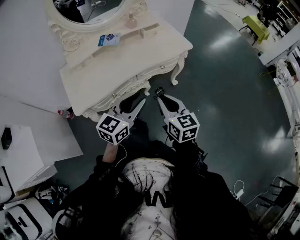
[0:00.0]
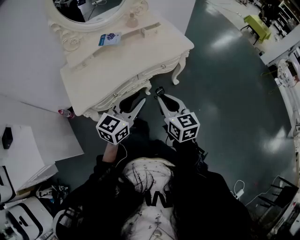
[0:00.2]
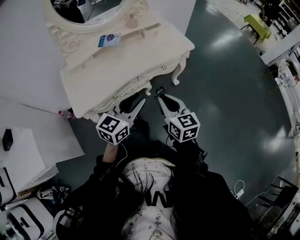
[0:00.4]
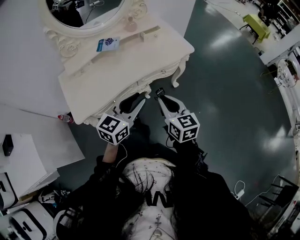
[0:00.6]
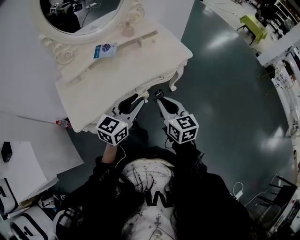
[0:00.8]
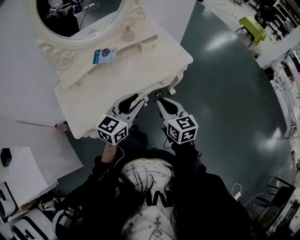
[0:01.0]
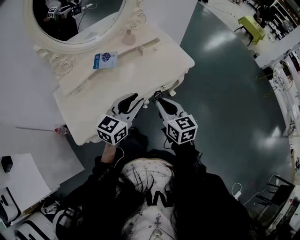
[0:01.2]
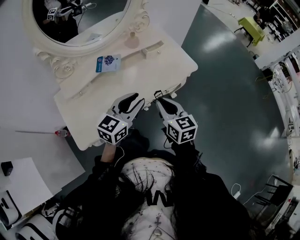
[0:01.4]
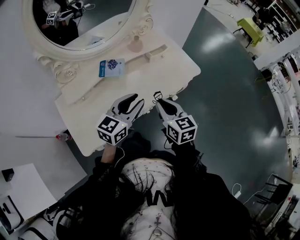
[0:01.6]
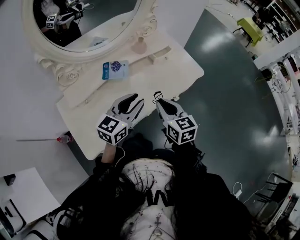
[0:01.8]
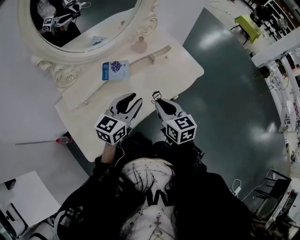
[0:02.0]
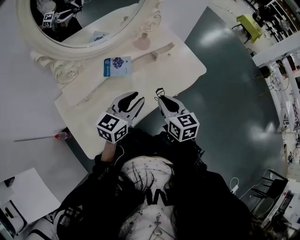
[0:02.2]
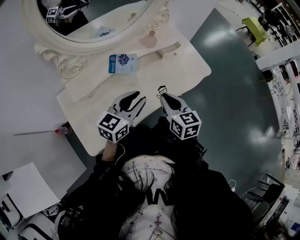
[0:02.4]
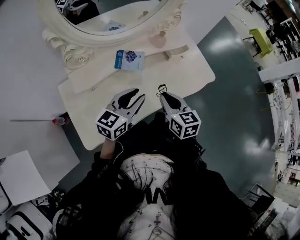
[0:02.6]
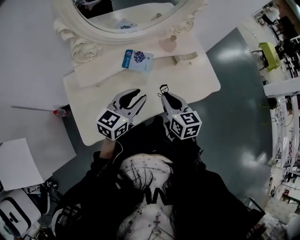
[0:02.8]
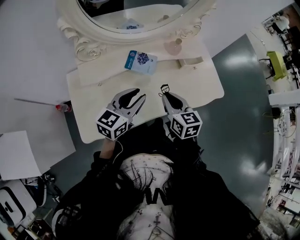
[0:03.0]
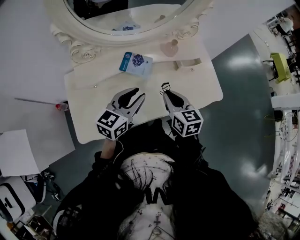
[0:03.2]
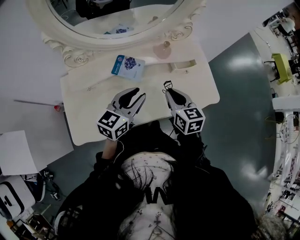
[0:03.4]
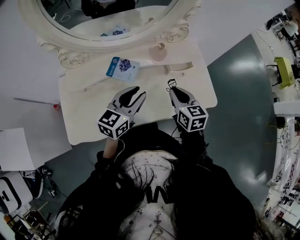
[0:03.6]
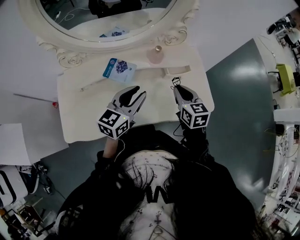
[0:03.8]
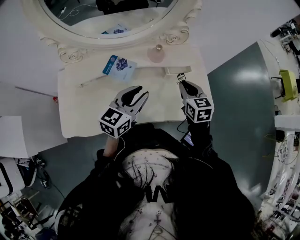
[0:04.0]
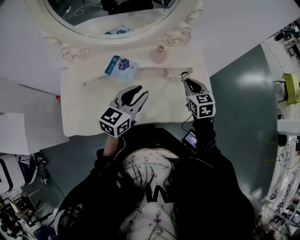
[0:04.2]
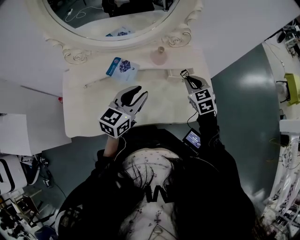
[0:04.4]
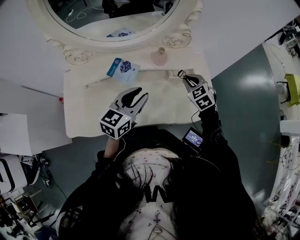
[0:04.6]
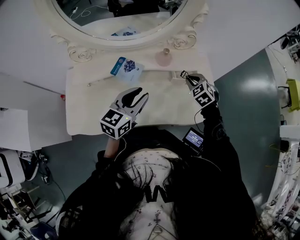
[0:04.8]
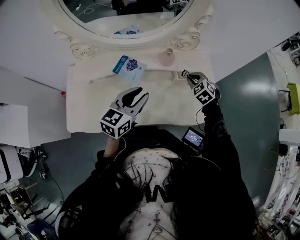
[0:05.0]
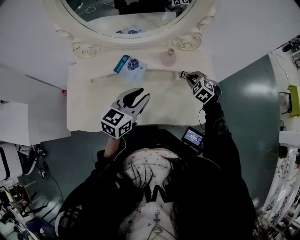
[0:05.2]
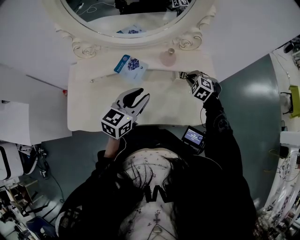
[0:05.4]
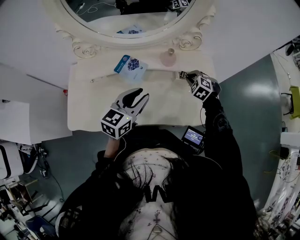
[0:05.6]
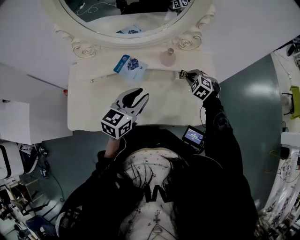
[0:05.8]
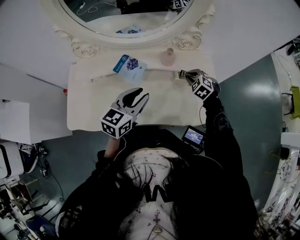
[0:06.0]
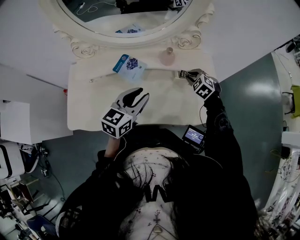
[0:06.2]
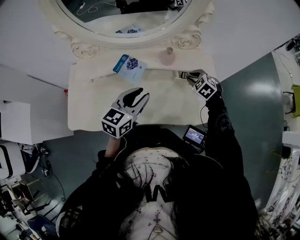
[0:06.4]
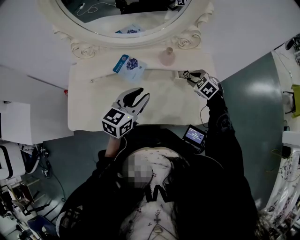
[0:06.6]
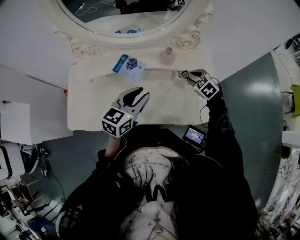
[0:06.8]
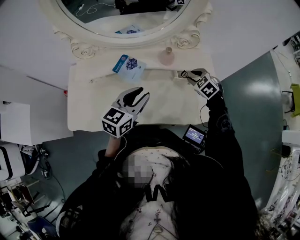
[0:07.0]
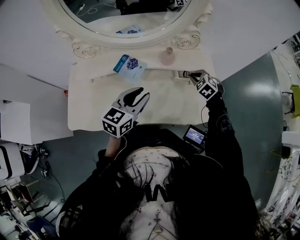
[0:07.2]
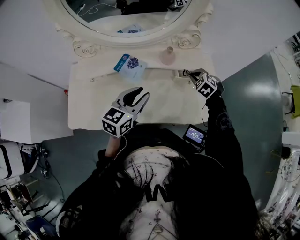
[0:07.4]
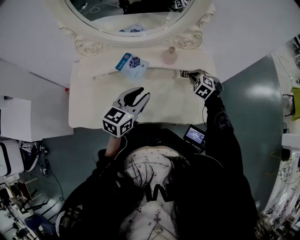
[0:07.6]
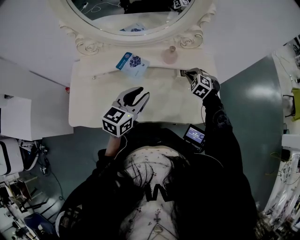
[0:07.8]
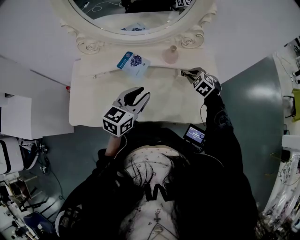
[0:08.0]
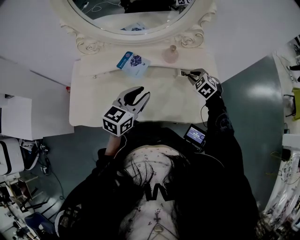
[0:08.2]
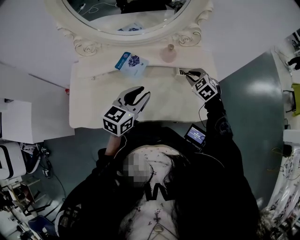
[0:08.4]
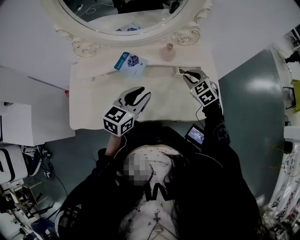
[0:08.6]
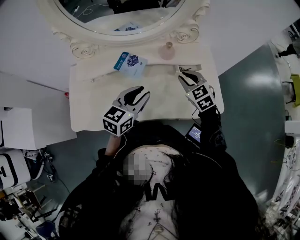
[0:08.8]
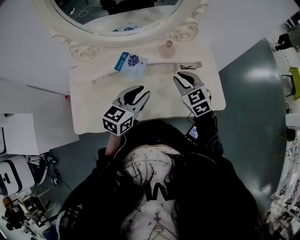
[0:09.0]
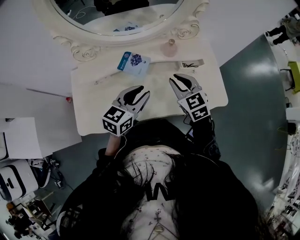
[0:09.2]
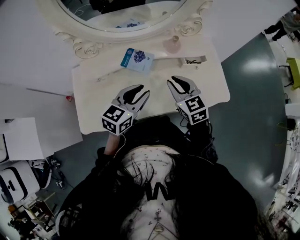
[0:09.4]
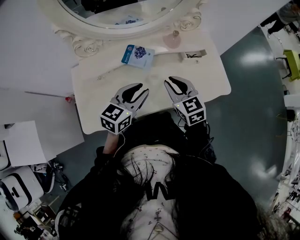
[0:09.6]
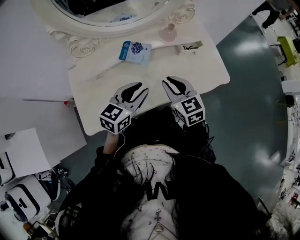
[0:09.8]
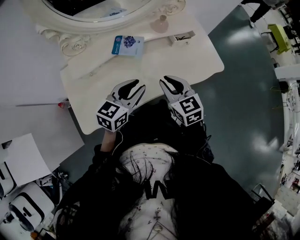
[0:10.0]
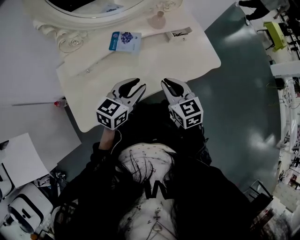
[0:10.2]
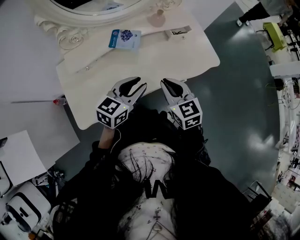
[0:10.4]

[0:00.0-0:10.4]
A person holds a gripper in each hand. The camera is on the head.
0:00.0 to 0:01.4: Both grippers move forward, about 20 cm.
0:01.4 to 0:03.0: Both grippers travel together to the left and forward, roughly 15 cm.
0:03.0 to 0:04.4: The right gripper is displaced to the right and forward by approximately 25 cm, and rotates about 30 degrees. Meanwhile the left gripper shifts some 15 cm to the right and forward.
0:04.4 to 0:06.0: The right gripper heads downward and forward, covering roughly 10 cm, and turns by some 40 degrees.
0:06.0 to 0:07.4: The grippers stay close to where they were, moving slightly.
0:07.4 to 0:09.0: The right gripper is displaced upward, to the left and backward by some 20 cm, and rotates about 30 degrees.
0:09.0 to 0:10.4: The left gripper is displaced backward by approximately 10 cm; the right gripper shifts about 20 cm backward, and swivels about 20 degrees.

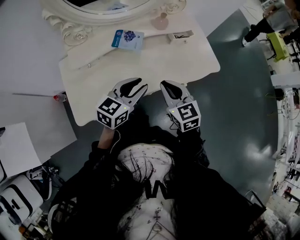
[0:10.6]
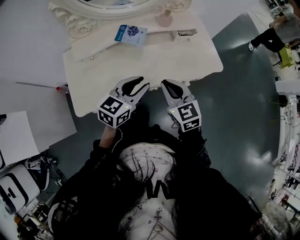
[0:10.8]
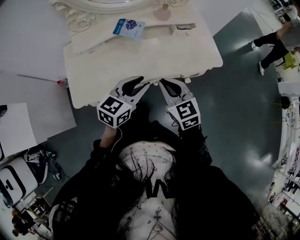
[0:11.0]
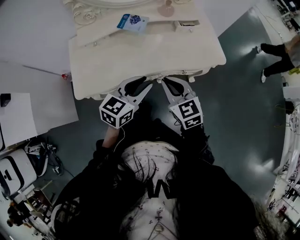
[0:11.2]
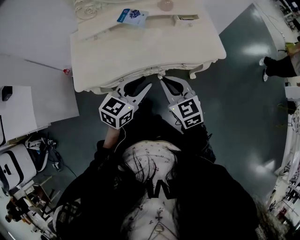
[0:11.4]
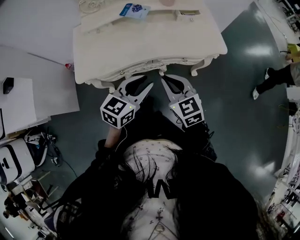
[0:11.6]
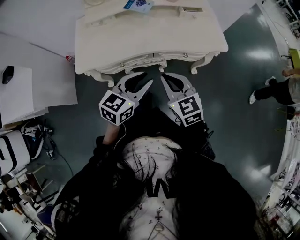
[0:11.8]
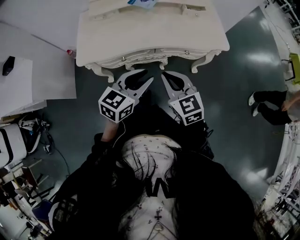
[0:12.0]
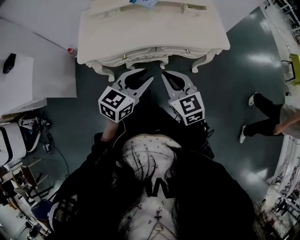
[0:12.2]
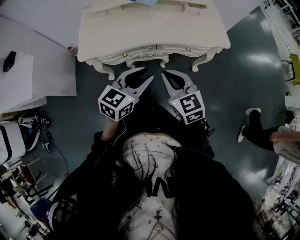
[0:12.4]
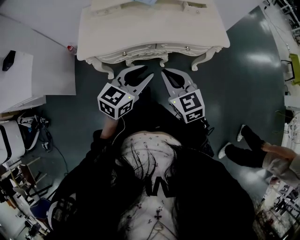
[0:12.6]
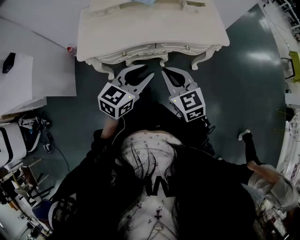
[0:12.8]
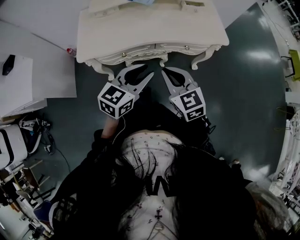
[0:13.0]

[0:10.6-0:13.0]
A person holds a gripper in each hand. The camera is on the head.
0:10.6 to 0:11.8: Both grippers travel together backward, some 20 cm.
0:11.8 to 0:13.0: The grippers move only a little.

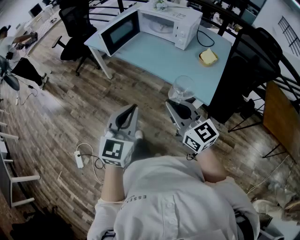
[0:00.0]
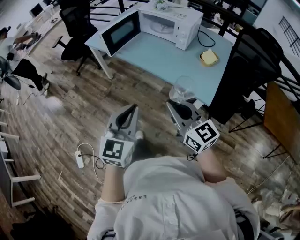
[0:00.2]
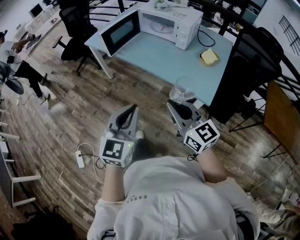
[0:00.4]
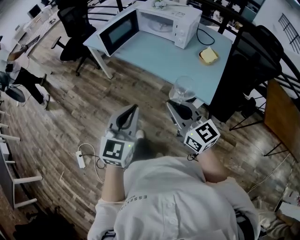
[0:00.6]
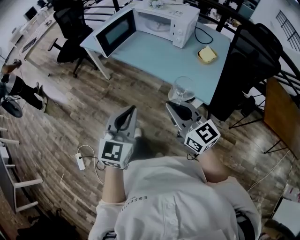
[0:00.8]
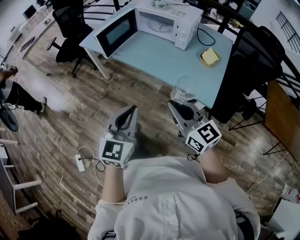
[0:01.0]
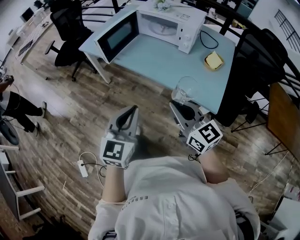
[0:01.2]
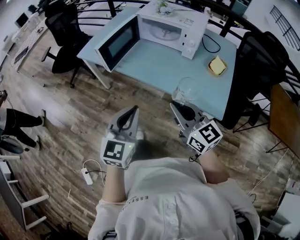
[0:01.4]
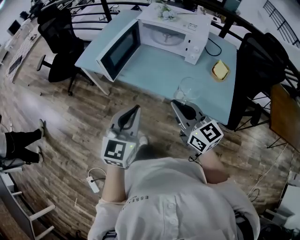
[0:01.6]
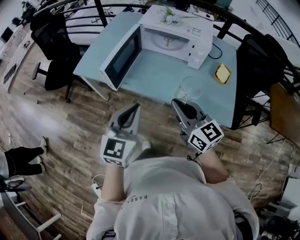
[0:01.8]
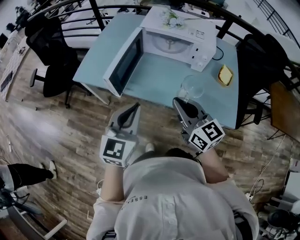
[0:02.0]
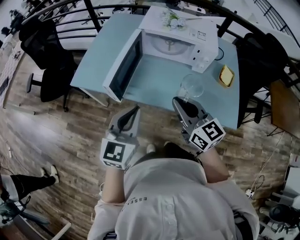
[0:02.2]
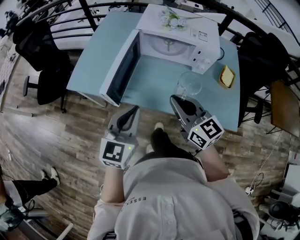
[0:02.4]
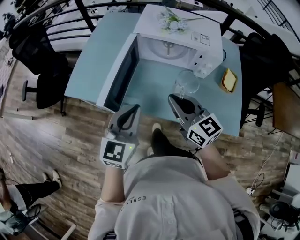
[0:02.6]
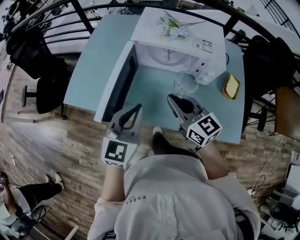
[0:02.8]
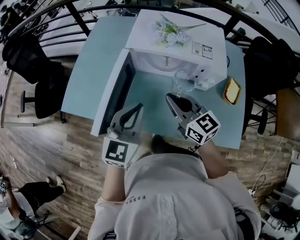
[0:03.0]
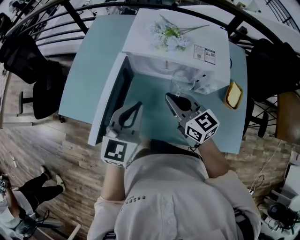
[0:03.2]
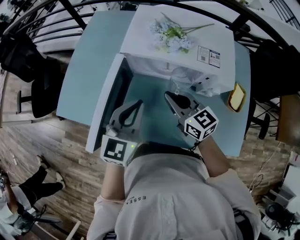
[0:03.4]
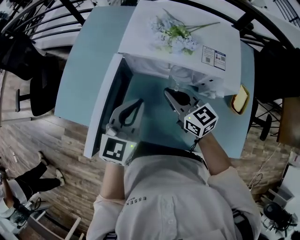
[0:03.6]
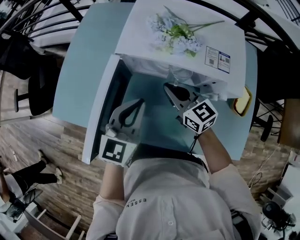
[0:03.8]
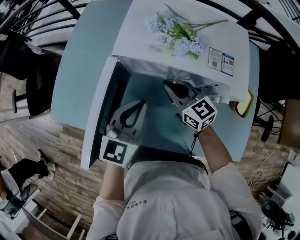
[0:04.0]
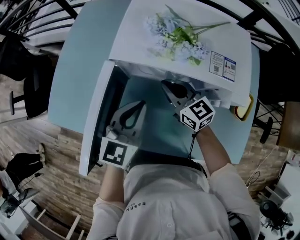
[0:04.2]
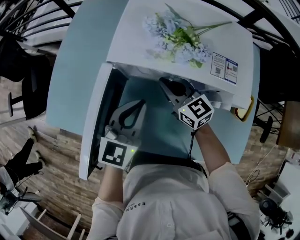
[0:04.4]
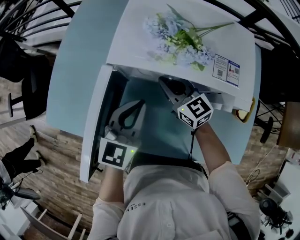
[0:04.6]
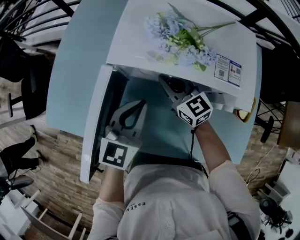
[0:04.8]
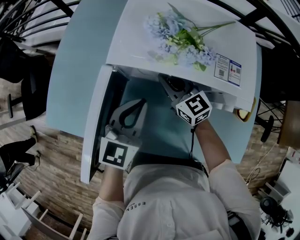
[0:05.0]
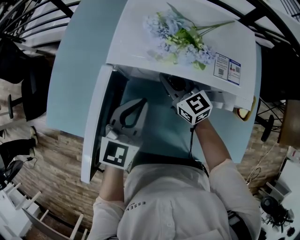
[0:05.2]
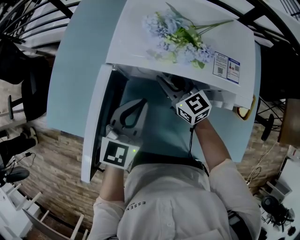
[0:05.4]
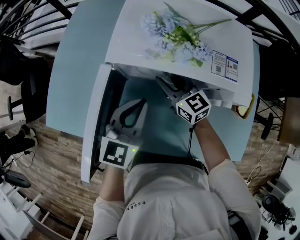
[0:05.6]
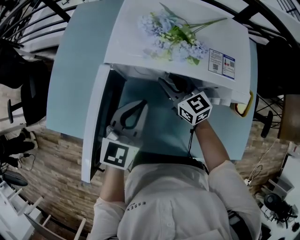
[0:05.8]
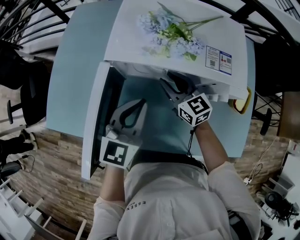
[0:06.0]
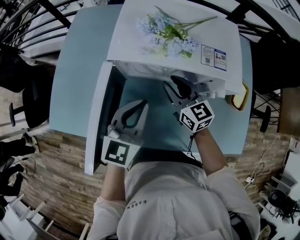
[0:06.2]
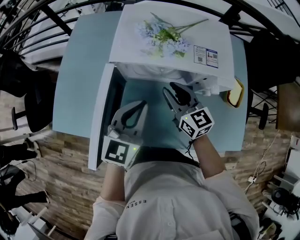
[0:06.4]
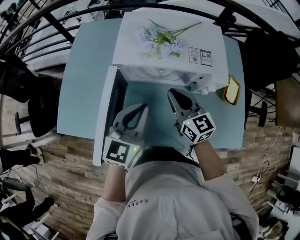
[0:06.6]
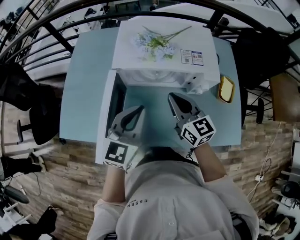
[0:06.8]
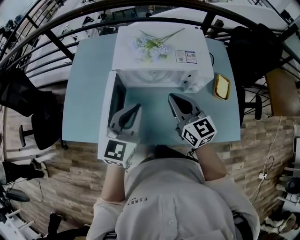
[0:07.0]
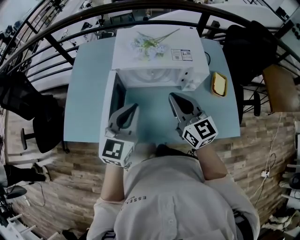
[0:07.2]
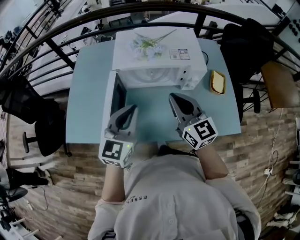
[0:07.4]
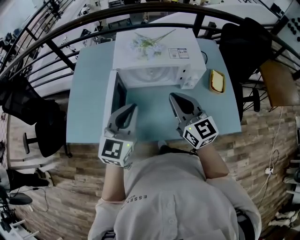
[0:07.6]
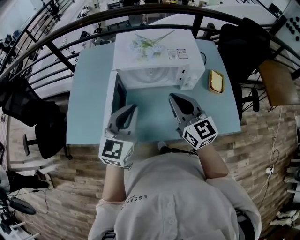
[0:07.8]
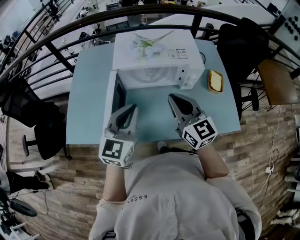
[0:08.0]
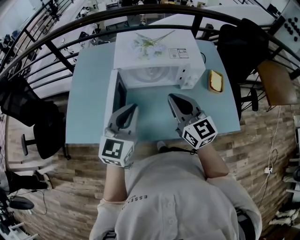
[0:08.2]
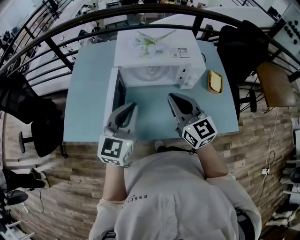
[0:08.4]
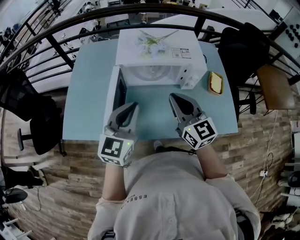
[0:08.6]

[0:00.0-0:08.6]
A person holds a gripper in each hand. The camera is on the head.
0:00.0 to 0:01.4: The two grippers go approximately 15 cm forward.
0:01.4 to 0:02.8: The grippers both shift forward by roughly 35 cm.
0:02.8 to 0:04.4: Both grippers move forward and downward, approximately 25 cm.
0:04.4 to 0:05.8: The right gripper opens its fingers.
0:05.8 to 0:07.2: The right gripper travels upward and backward by some 25 cm, turns by about 20 degrees, and closes. Meanwhile the left gripper heads upward and backward, covering roughly 15 cm.
0:07.2 to 0:08.6: The grippers move only a little.

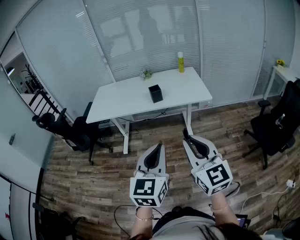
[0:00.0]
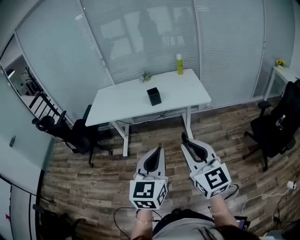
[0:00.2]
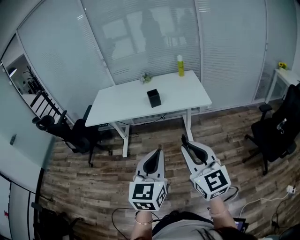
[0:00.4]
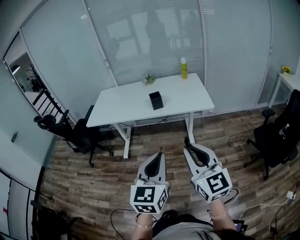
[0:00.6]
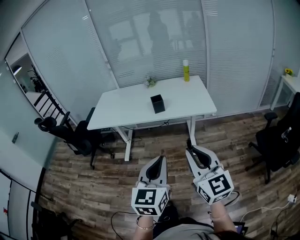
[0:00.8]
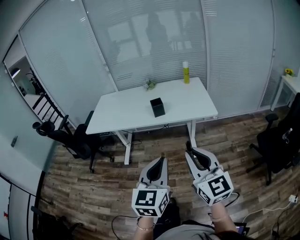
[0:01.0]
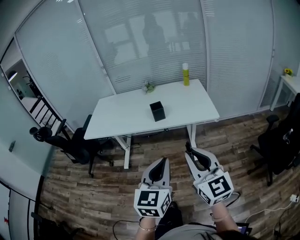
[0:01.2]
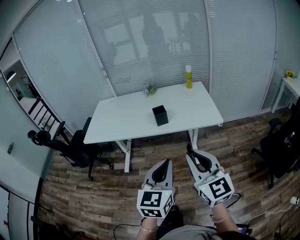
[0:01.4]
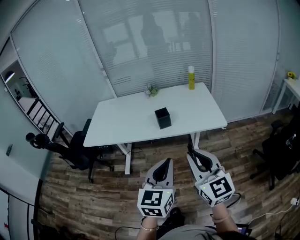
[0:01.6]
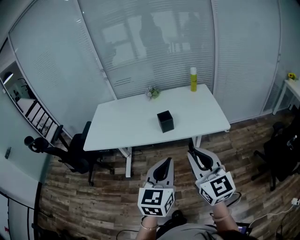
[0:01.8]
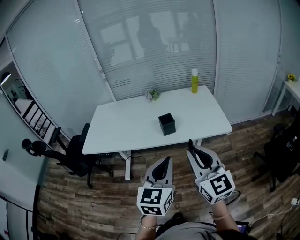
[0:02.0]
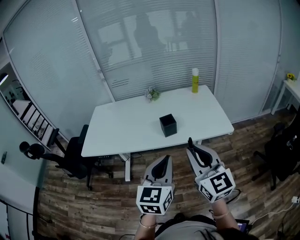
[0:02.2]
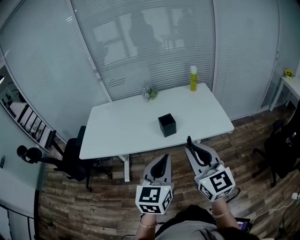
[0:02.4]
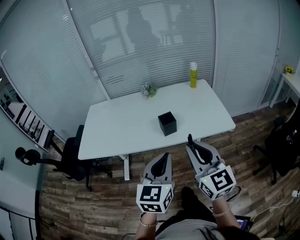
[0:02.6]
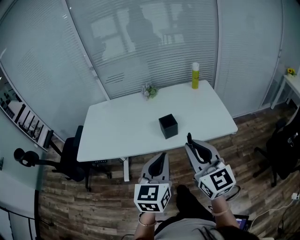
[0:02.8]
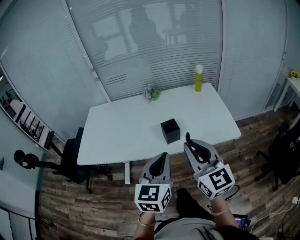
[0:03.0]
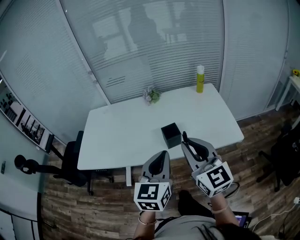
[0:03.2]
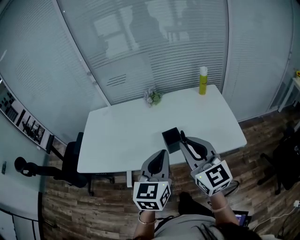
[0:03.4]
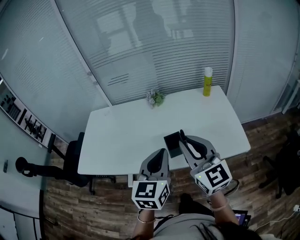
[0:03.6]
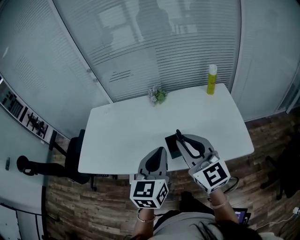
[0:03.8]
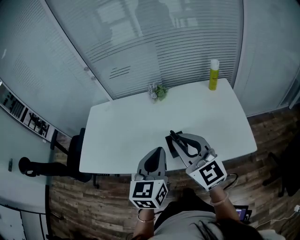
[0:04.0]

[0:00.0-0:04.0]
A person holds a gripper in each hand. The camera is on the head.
0:00.0 to 0:01.4: Both grippers move forward, approximately 15 cm.
0:01.4 to 0:02.6: Both grippers move forward and to the left, approximately 20 cm.
0:02.6 to 0:04.0: The two grippers go roughly 25 cm forward.
